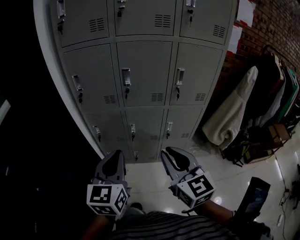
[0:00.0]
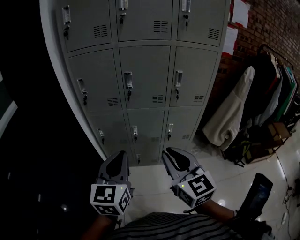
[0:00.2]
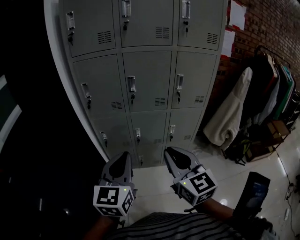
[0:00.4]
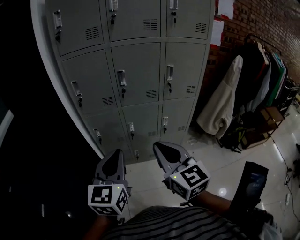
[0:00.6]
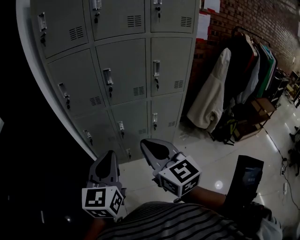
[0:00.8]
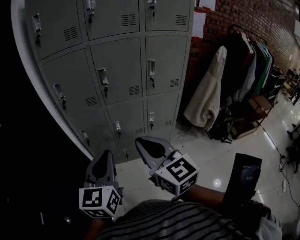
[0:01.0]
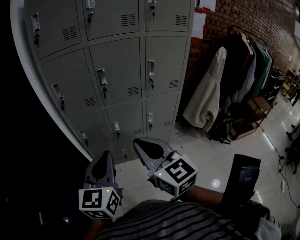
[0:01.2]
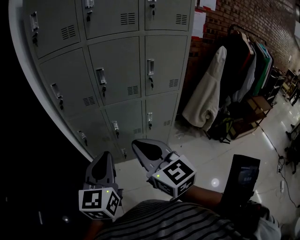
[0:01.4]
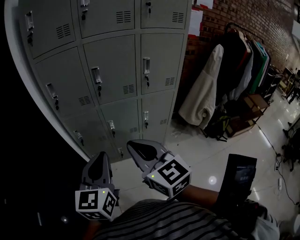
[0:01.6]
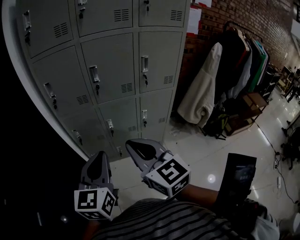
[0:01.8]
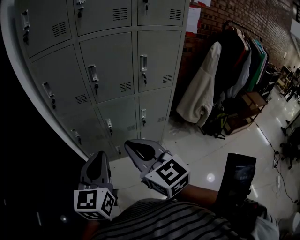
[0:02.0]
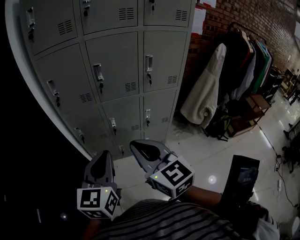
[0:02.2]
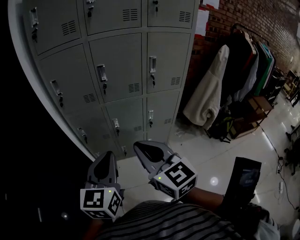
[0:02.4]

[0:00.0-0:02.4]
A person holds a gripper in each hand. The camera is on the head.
0:00.0 to 0:01.2: The left gripper is displaced backward by about 5 cm, while the right gripper travels to the left by roughly 5 cm.
0:01.2 to 0:02.4: The grippers make only small movements.

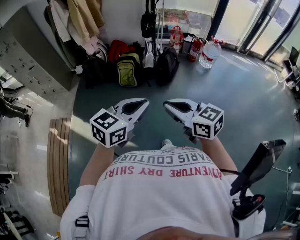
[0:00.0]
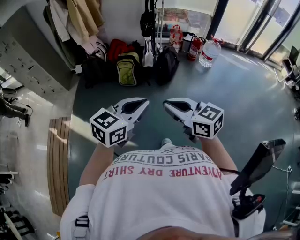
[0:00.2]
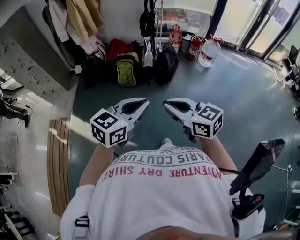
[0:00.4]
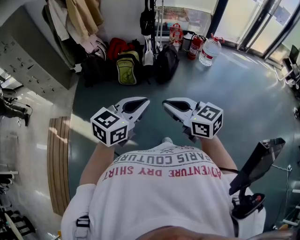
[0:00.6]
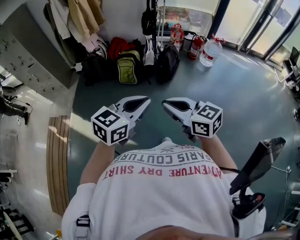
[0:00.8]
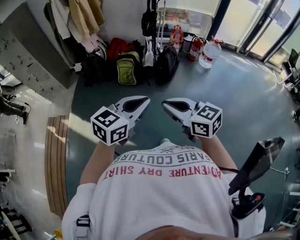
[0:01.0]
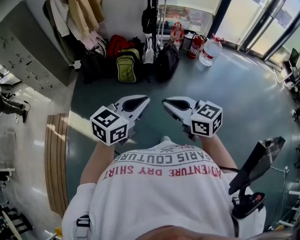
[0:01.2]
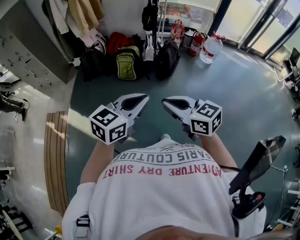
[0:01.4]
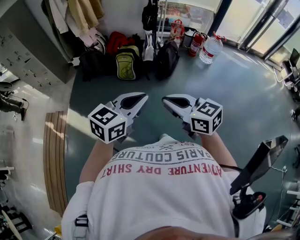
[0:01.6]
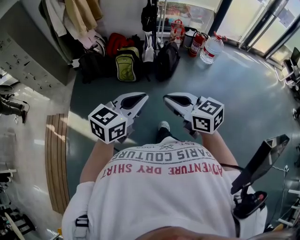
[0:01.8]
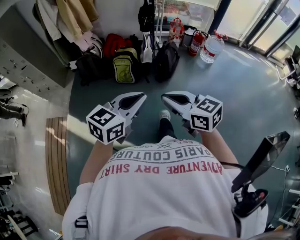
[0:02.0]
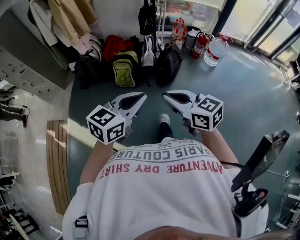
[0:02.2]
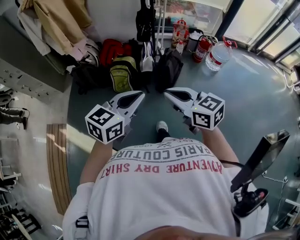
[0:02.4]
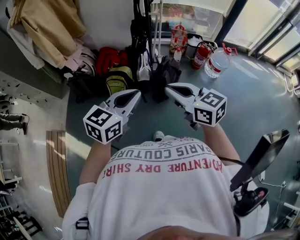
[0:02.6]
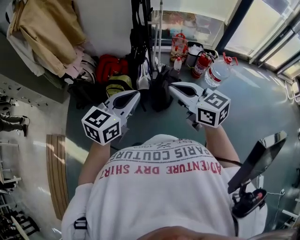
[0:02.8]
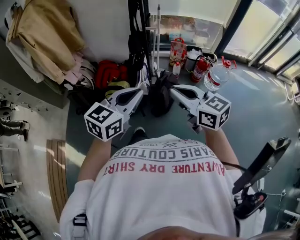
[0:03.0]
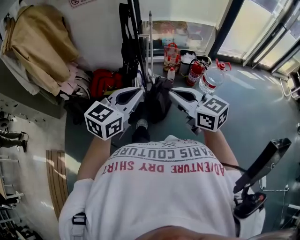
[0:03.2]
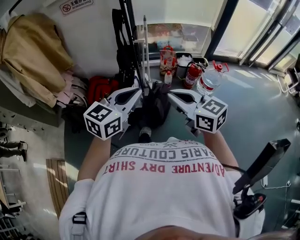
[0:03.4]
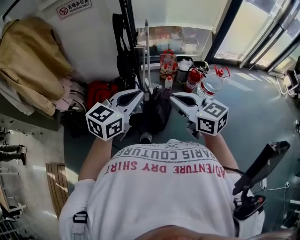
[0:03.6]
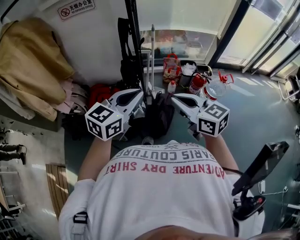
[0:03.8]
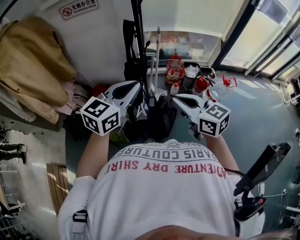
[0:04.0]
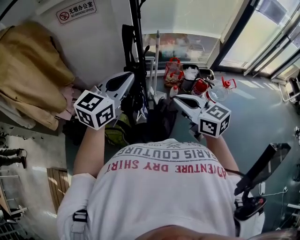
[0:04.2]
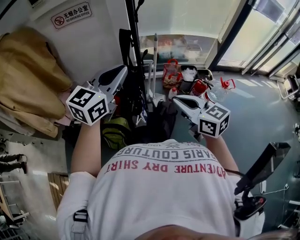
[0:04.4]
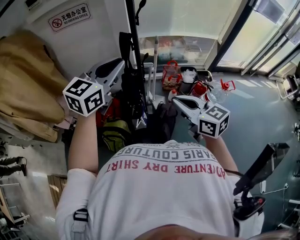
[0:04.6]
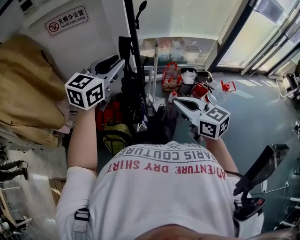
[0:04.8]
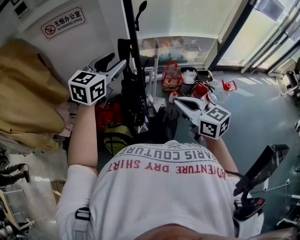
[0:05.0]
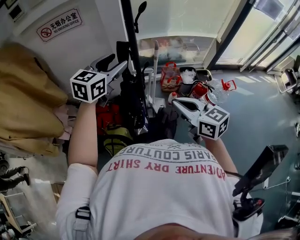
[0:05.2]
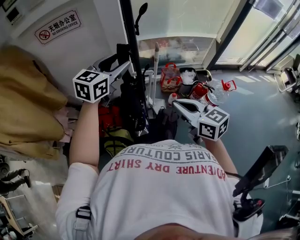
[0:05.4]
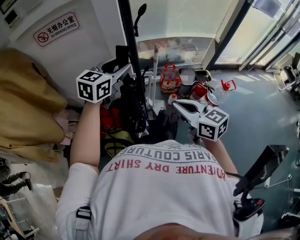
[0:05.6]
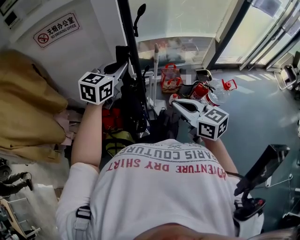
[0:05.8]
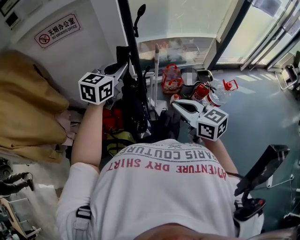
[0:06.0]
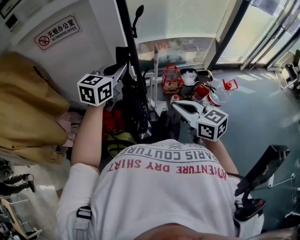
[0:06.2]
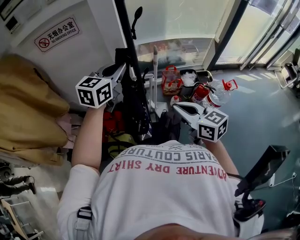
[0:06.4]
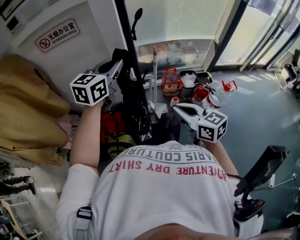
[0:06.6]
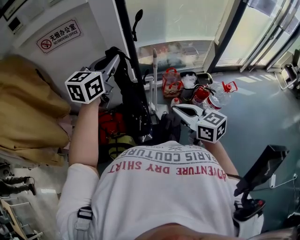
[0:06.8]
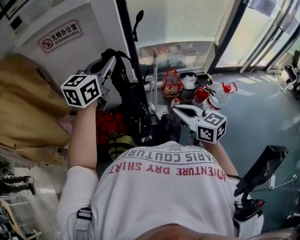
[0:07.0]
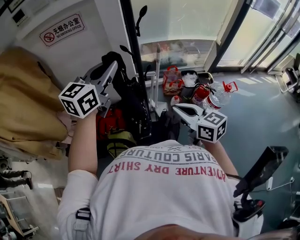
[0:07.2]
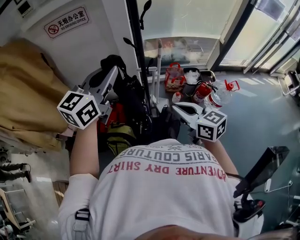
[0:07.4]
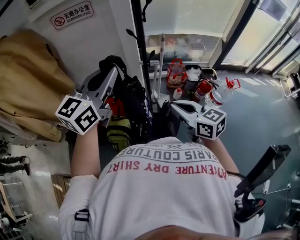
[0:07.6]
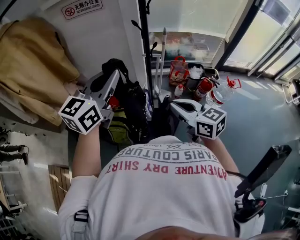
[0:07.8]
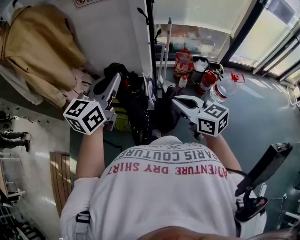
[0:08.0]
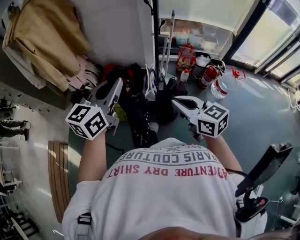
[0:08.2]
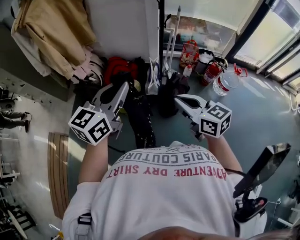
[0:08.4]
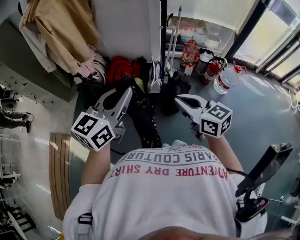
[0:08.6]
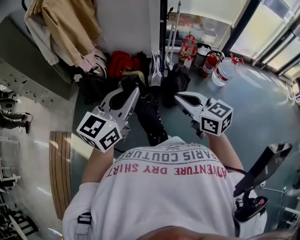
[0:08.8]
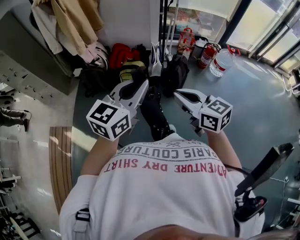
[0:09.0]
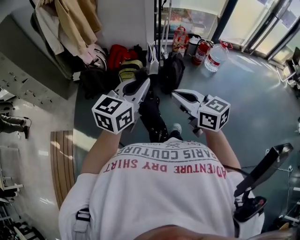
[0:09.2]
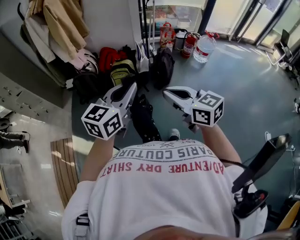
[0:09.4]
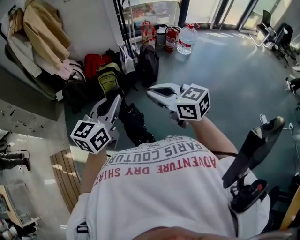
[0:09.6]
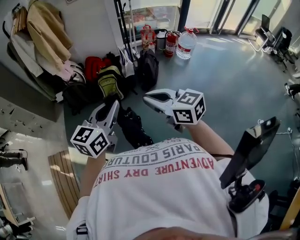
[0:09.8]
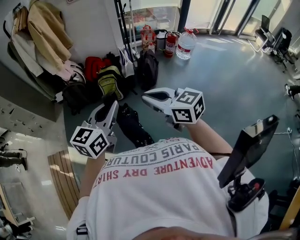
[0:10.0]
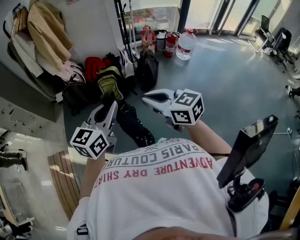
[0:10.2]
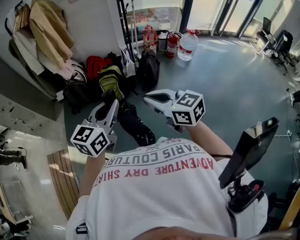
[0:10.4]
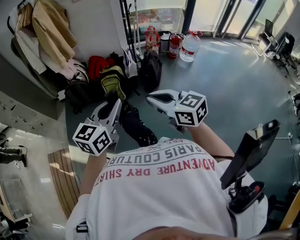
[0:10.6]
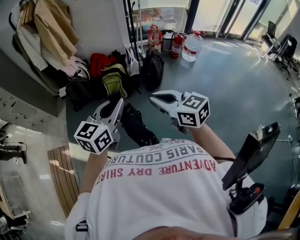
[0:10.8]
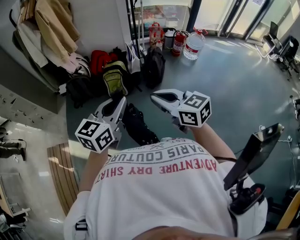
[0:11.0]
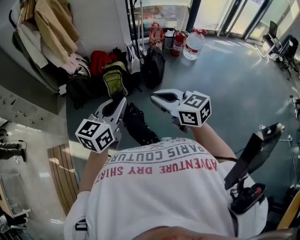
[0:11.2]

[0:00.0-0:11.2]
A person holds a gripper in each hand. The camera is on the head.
0:00.0 to 0:01.6: There are only small adjustments of the grippers.
0:01.6 to 0:03.2: Both grippers are carried forward and to the right, about 40 cm.
0:03.2 to 0:04.8: The left gripper travels forward by about 30 cm, and opens; the right gripper goes about 20 cm forward.
0:04.8 to 0:06.4: The left gripper is displaced forward by some 10 cm, and opens and closes again, while the right gripper ends up some 5 cm from where it was.
0:06.4 to 0:08.0: The left gripper travels backward by approximately 35 cm. The right gripper is displaced backward by about 20 cm.
0:08.0 to 0:09.6: The pair of grippers is taken backward, about 50 cm.
0:09.6 to 0:11.2: There are only small adjustments of the grippers.

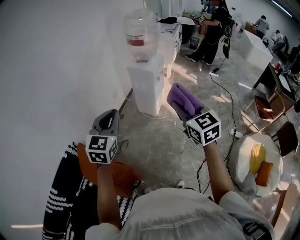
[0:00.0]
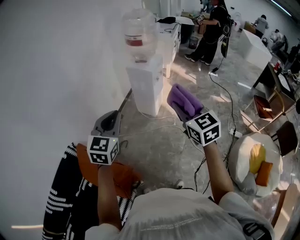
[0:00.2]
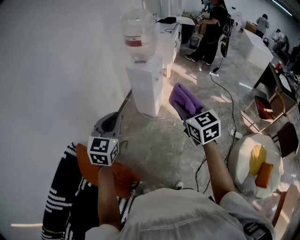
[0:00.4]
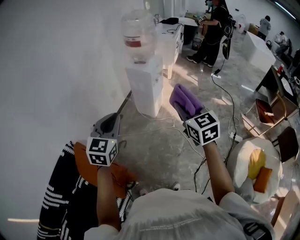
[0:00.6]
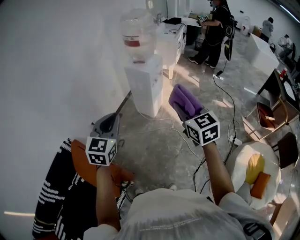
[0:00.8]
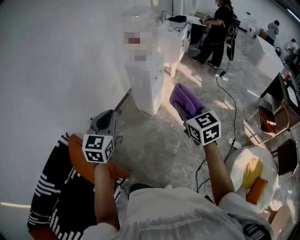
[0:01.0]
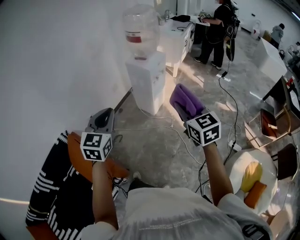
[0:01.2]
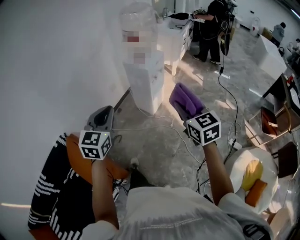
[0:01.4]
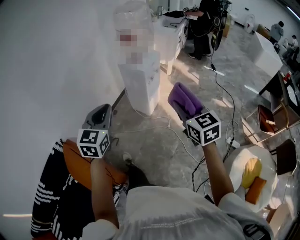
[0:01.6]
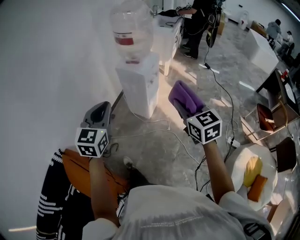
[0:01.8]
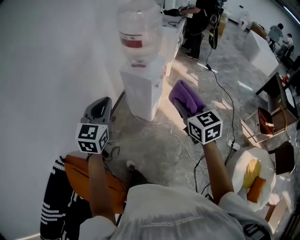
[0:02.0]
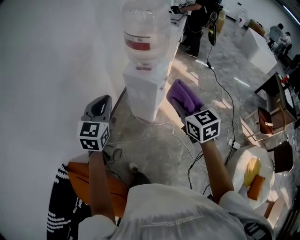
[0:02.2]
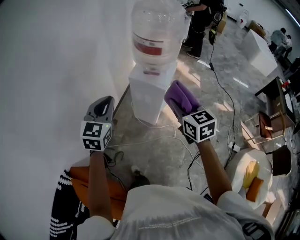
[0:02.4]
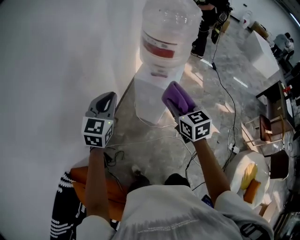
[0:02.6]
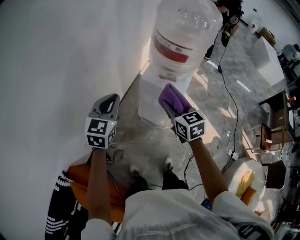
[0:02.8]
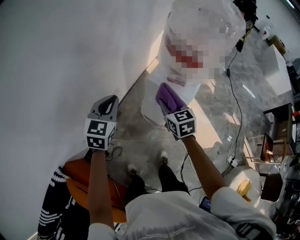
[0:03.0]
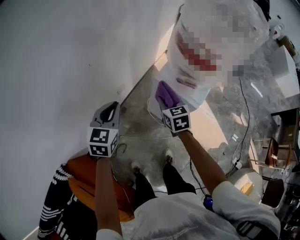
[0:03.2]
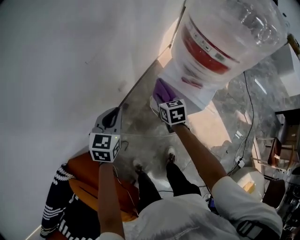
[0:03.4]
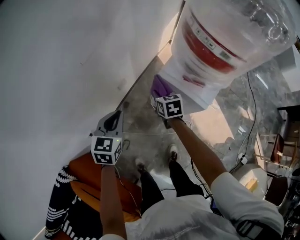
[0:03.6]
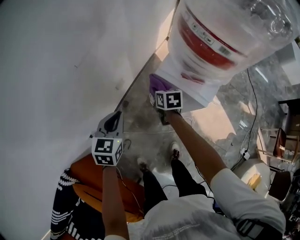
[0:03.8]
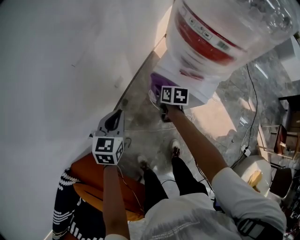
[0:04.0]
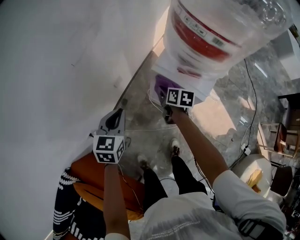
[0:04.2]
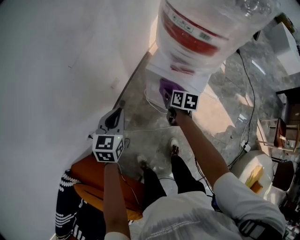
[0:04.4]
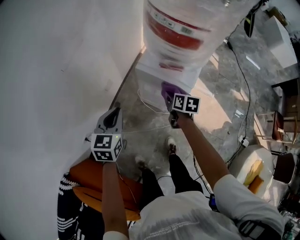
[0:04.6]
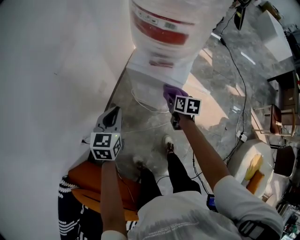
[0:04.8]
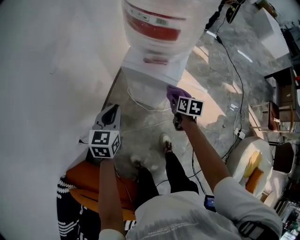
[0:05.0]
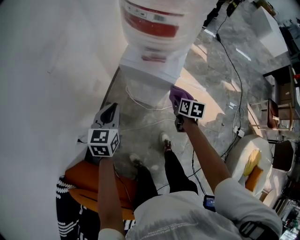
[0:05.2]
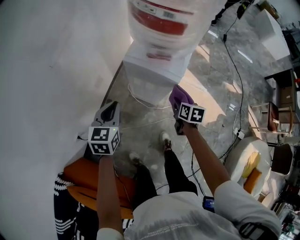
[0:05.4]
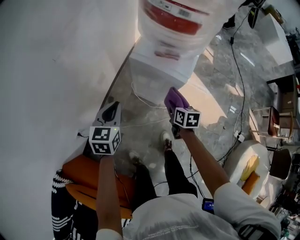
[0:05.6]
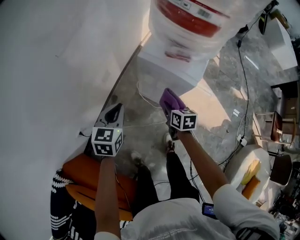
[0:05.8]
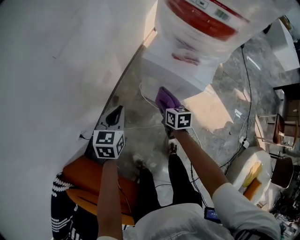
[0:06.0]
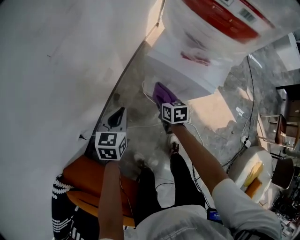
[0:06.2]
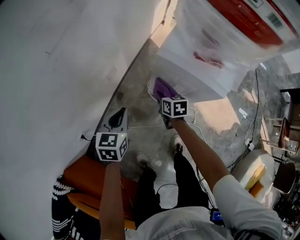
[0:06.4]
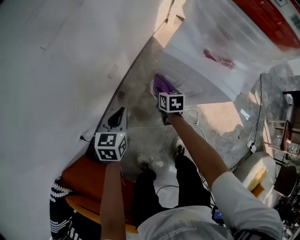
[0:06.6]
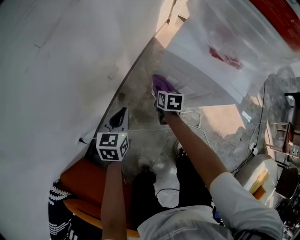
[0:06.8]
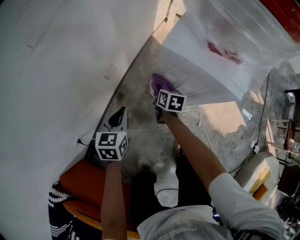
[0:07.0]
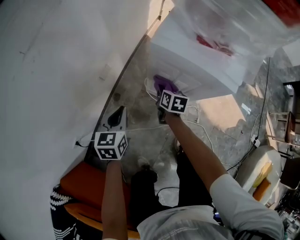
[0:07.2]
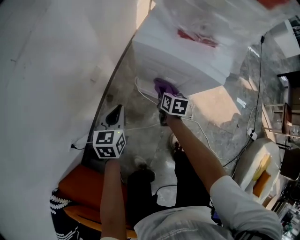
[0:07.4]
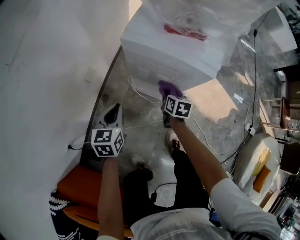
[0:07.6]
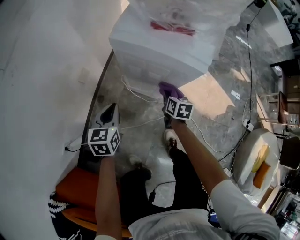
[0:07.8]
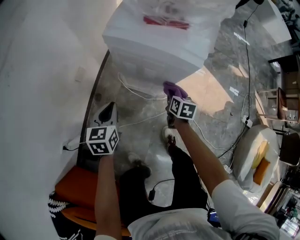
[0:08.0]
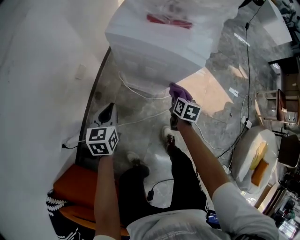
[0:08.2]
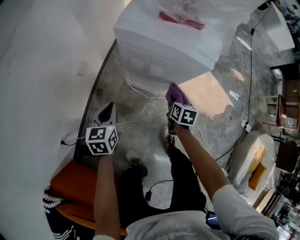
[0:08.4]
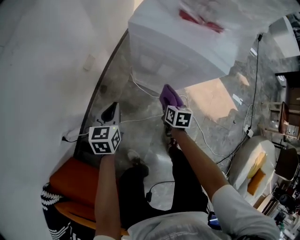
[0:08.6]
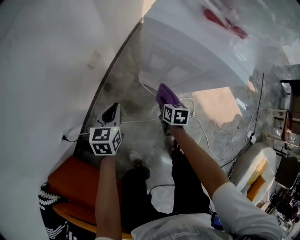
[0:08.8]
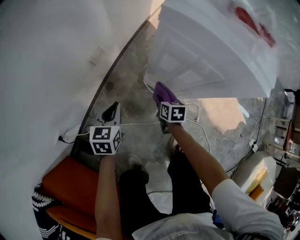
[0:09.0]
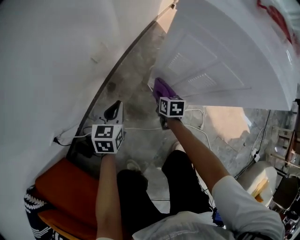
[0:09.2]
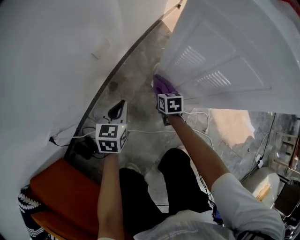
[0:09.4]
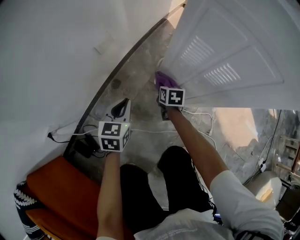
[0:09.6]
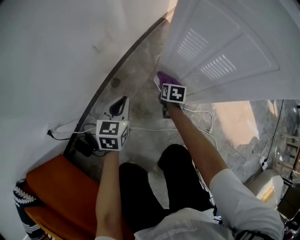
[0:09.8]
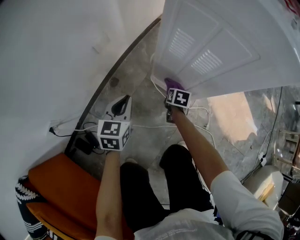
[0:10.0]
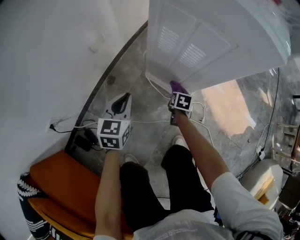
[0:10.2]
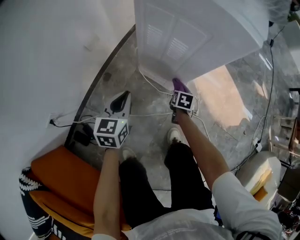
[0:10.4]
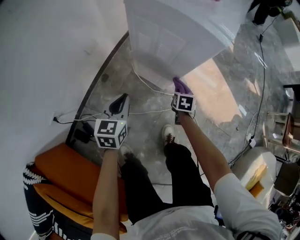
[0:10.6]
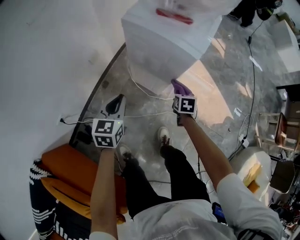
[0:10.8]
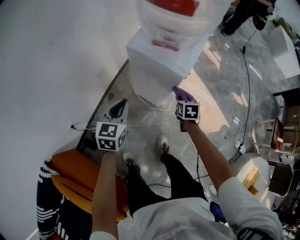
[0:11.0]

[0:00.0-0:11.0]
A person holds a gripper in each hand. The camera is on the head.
0:00.0 to 0:01.6: The grippers both shift to the right and forward by approximately 15 cm.
0:01.6 to 0:03.2: The pair of grippers is taken forward and to the left, about 60 cm. Both grippers travel together downward, roughly 20 cm. The right gripper turns by some 20 degrees.
0:03.2 to 0:04.8: The left gripper shifts about 10 cm to the right and downward. The right gripper heads to the right and downward, covering approximately 20 cm, and swivels about 40 degrees.
0:04.8 to 0:06.2: The right gripper shifts approximately 20 cm to the left and downward; the left gripper heads downward, covering roughly 15 cm.
0:06.2 to 0:07.8: The left gripper is displaced downward and to the right by roughly 15 cm; the right gripper shifts about 20 cm to the right and downward, and swivels about 20 degrees.
0:07.8 to 0:09.4: The right gripper moves downward and to the left, approximately 30 cm, and changes its angle by roughly 30 degrees. Meanwhile the left gripper shifts roughly 20 cm downward.
0:09.4 to 0:11.0: The right gripper moves upward and to the right, about 40 cm. The left gripper shifts about 40 cm upward.
